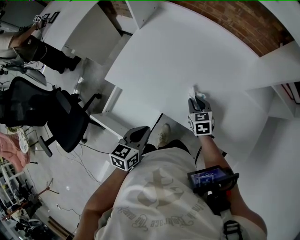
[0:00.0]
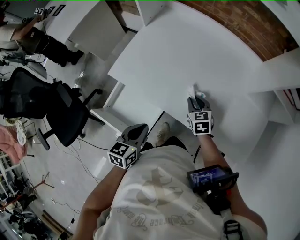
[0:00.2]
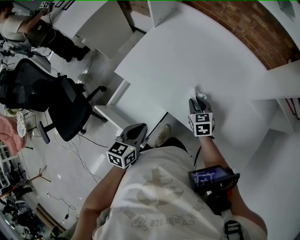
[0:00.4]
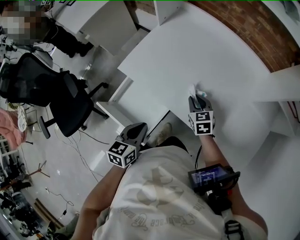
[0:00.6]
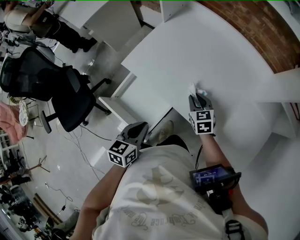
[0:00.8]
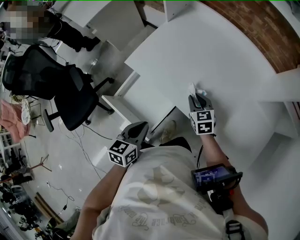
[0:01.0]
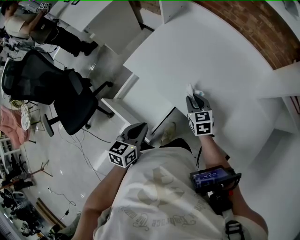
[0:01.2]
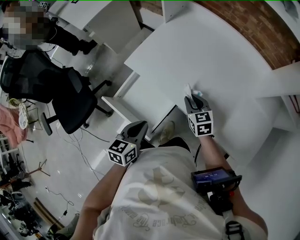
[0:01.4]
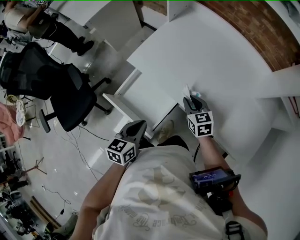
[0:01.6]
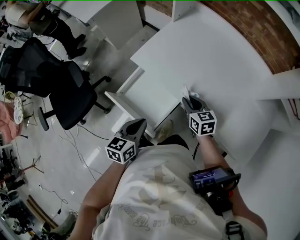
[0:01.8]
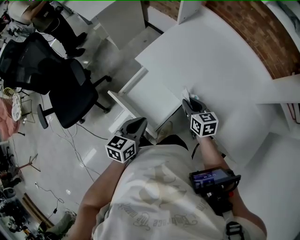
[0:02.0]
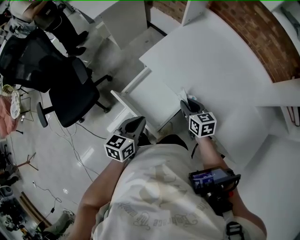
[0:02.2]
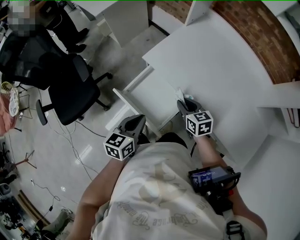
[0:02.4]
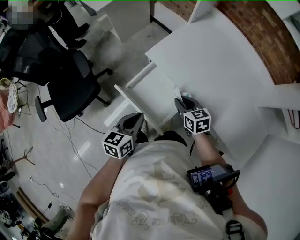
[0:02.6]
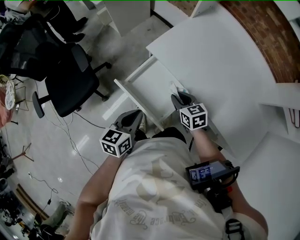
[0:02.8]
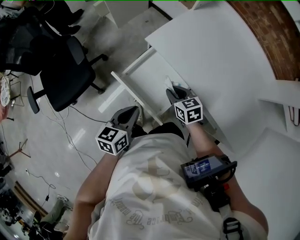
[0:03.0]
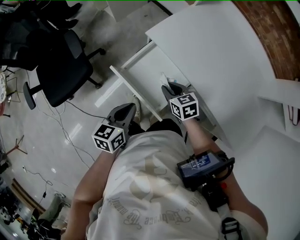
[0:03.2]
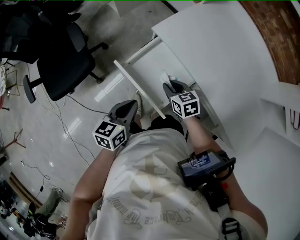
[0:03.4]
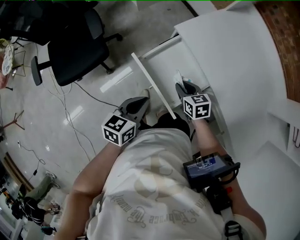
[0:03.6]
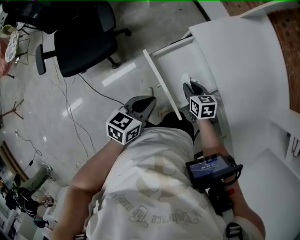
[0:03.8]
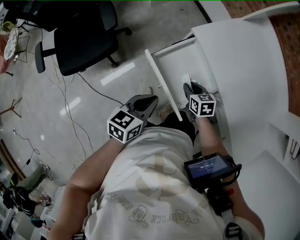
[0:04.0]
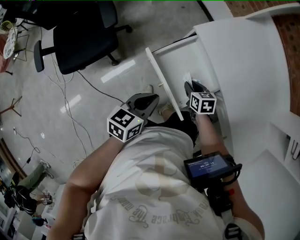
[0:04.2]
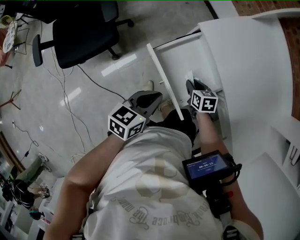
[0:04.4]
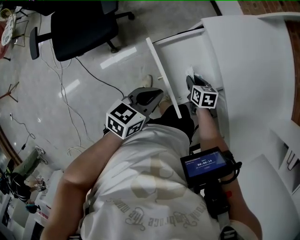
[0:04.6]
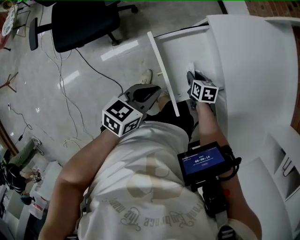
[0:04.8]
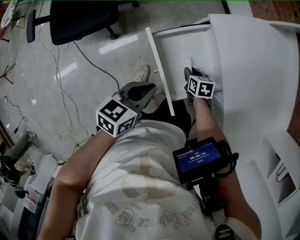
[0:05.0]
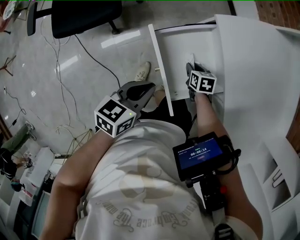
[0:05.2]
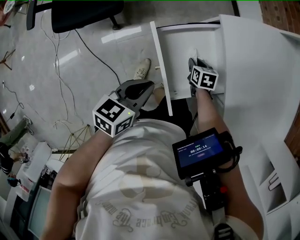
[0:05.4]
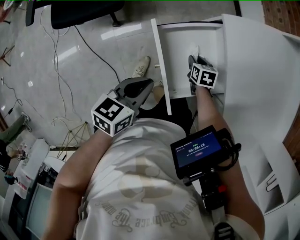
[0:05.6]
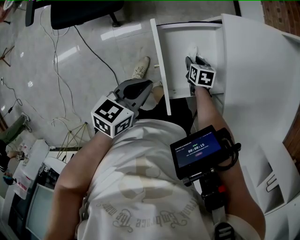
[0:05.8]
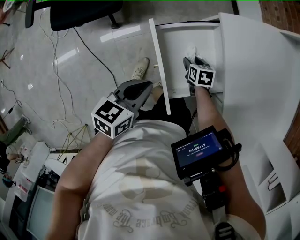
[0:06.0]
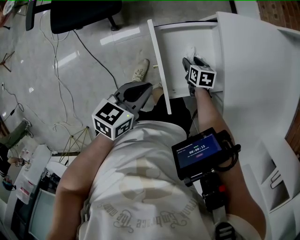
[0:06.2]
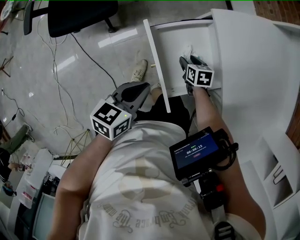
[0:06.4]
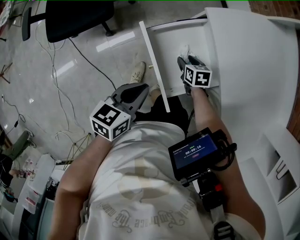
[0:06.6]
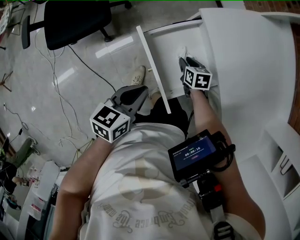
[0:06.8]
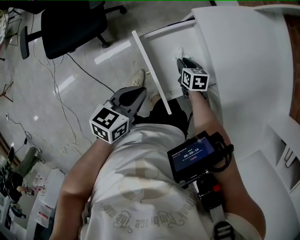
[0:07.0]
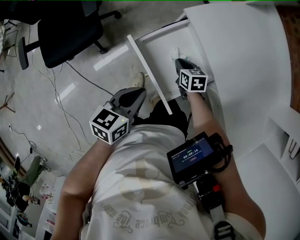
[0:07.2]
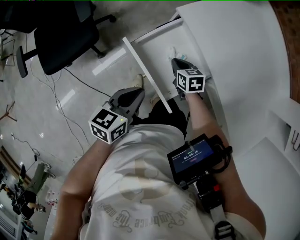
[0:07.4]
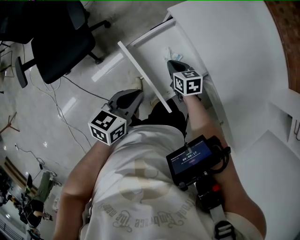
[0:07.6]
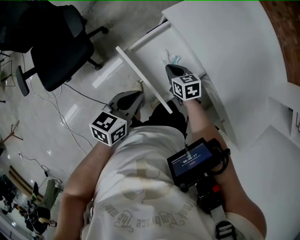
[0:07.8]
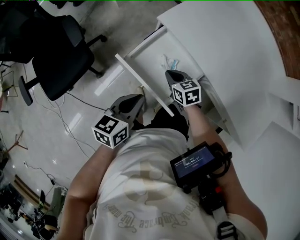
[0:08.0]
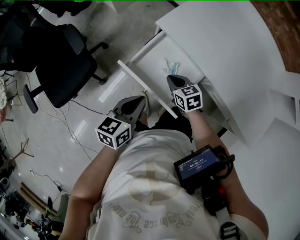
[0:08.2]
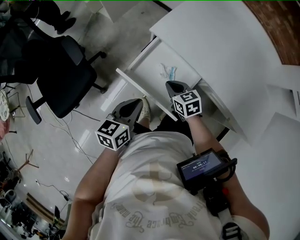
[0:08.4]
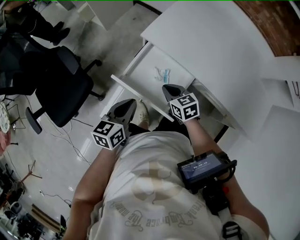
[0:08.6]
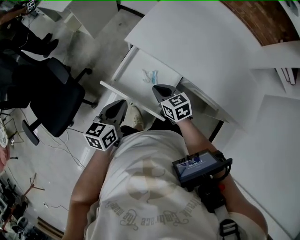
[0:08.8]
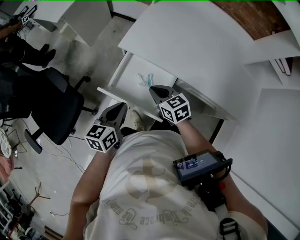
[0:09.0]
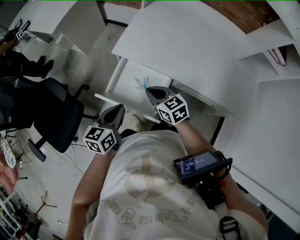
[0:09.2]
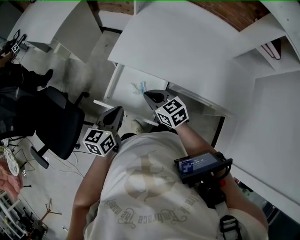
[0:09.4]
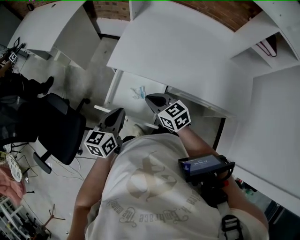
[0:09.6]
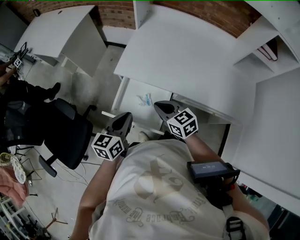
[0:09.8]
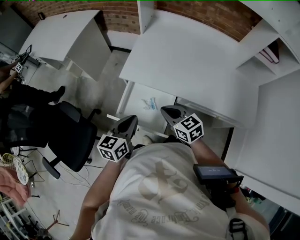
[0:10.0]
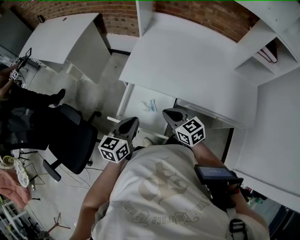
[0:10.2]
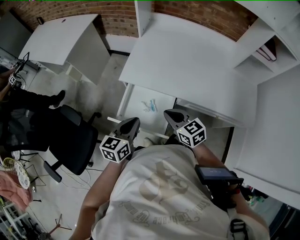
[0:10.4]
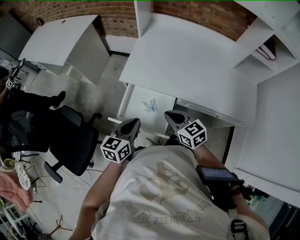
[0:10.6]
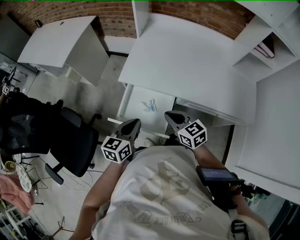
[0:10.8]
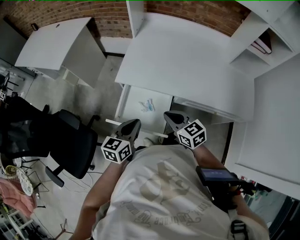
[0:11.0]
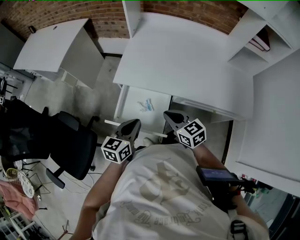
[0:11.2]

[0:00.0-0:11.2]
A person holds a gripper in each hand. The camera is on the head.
0:00.0 to 0:01.6: The right gripper is displaced to the left by roughly 10 cm, while the left gripper goes some 10 cm to the left and backward.
0:01.6 to 0:03.2: Both grippers move to the left, some 15 cm.
0:03.2 to 0:04.8: The left gripper ends up about 5 cm from where it was; the right gripper goes some 15 cm downward.
0:04.8 to 0:06.4: The right gripper opens.
0:06.4 to 0:08.0: The right gripper travels upward by about 10 cm, and closes. The left gripper turns by about 20 degrees.
0:08.0 to 0:09.6: The right gripper goes approximately 20 cm upward, and rotates approximately 20 degrees. Meanwhile the left gripper goes about 10 cm upward.
0:09.6 to 0:11.2: The right gripper changes place by some 5 cm.

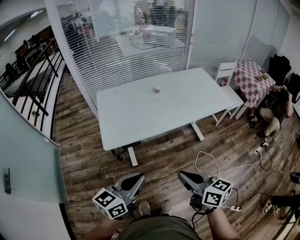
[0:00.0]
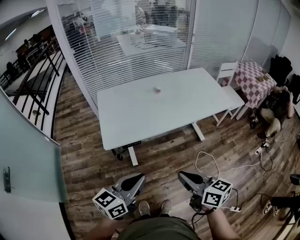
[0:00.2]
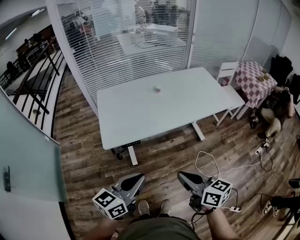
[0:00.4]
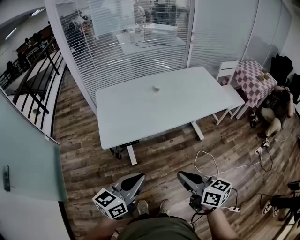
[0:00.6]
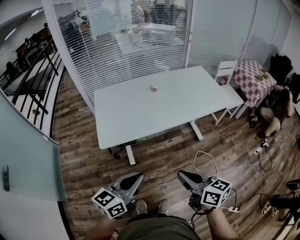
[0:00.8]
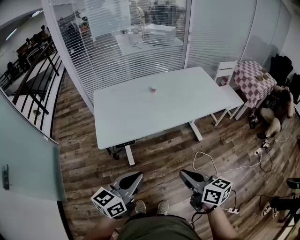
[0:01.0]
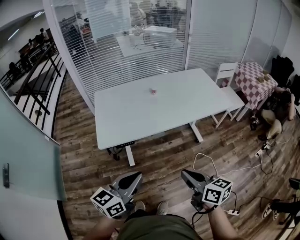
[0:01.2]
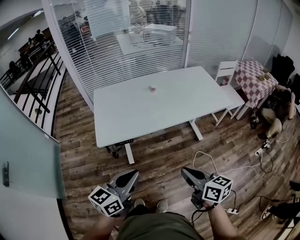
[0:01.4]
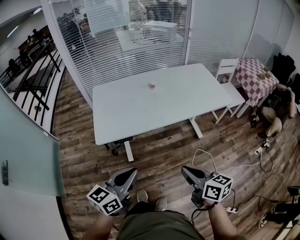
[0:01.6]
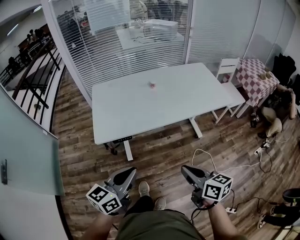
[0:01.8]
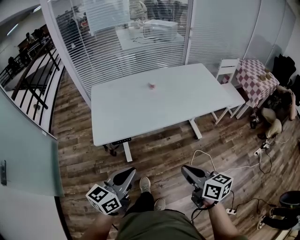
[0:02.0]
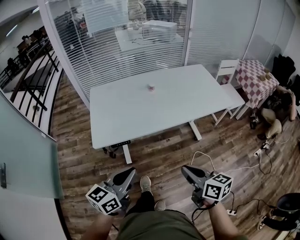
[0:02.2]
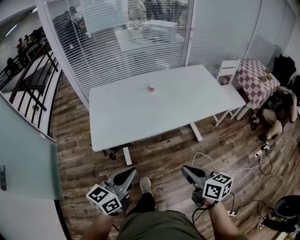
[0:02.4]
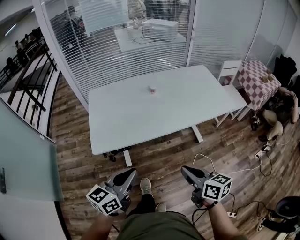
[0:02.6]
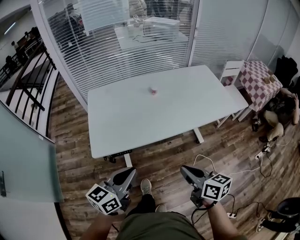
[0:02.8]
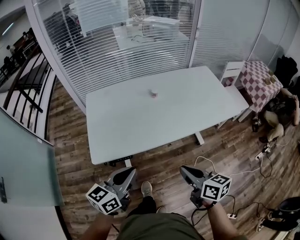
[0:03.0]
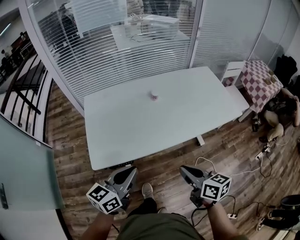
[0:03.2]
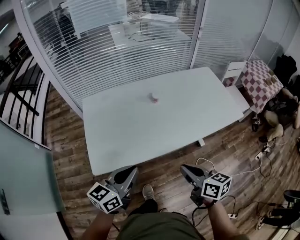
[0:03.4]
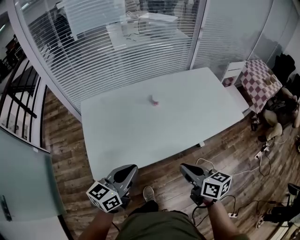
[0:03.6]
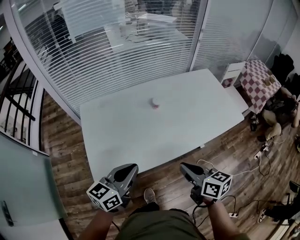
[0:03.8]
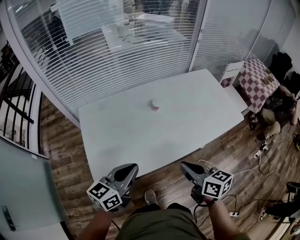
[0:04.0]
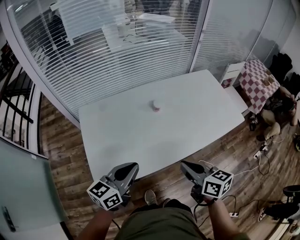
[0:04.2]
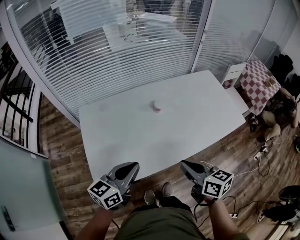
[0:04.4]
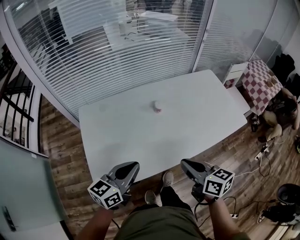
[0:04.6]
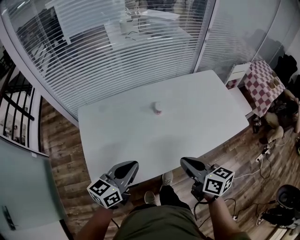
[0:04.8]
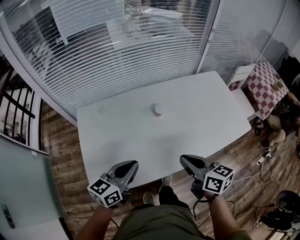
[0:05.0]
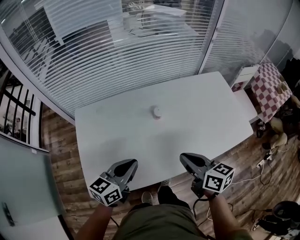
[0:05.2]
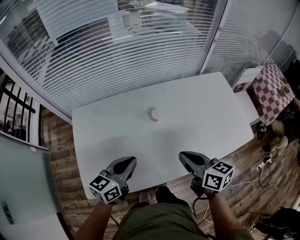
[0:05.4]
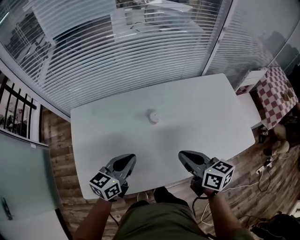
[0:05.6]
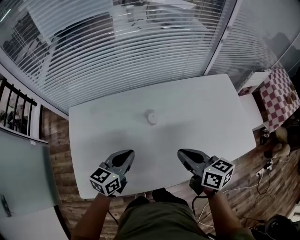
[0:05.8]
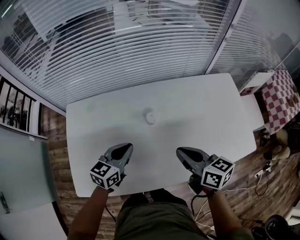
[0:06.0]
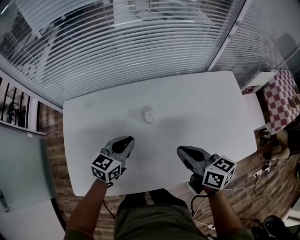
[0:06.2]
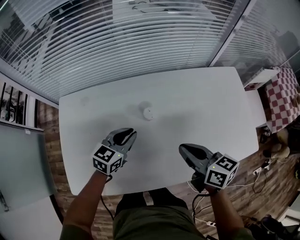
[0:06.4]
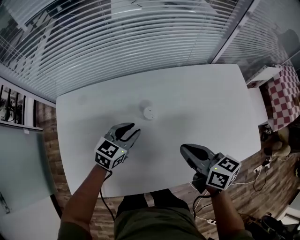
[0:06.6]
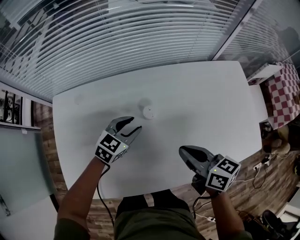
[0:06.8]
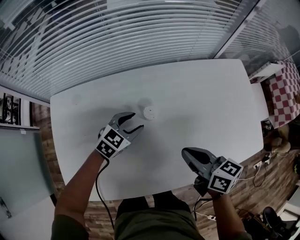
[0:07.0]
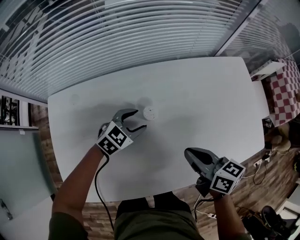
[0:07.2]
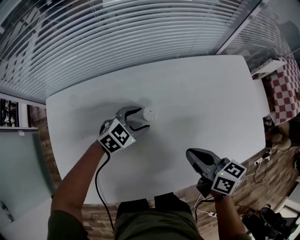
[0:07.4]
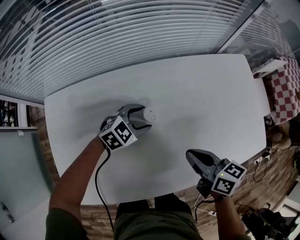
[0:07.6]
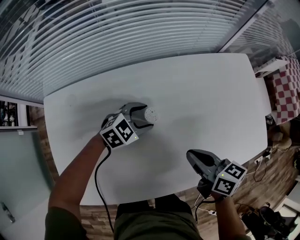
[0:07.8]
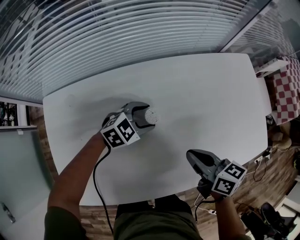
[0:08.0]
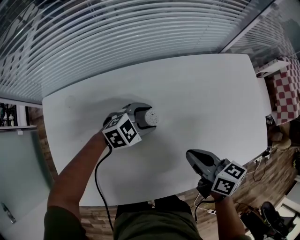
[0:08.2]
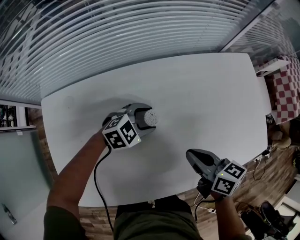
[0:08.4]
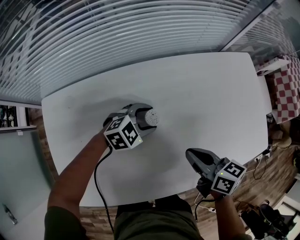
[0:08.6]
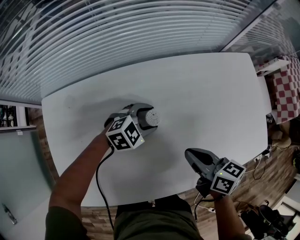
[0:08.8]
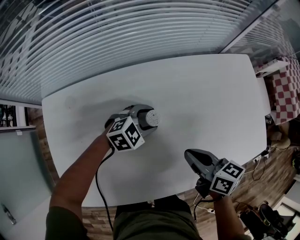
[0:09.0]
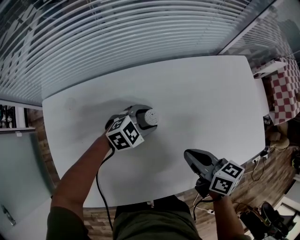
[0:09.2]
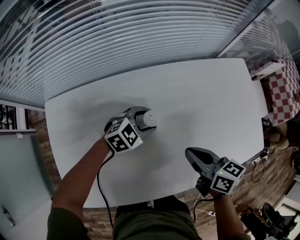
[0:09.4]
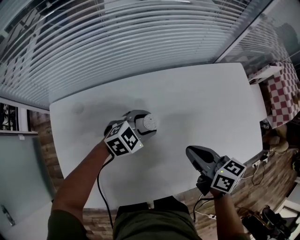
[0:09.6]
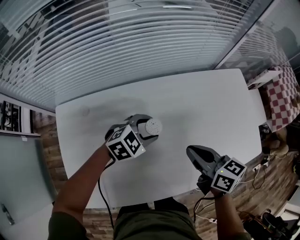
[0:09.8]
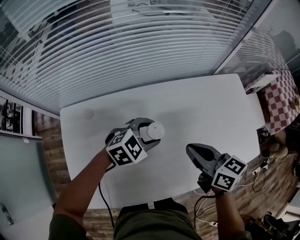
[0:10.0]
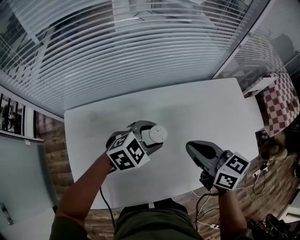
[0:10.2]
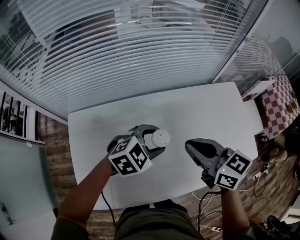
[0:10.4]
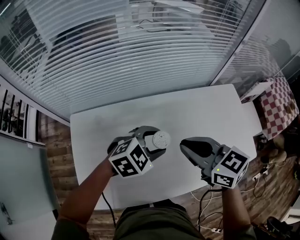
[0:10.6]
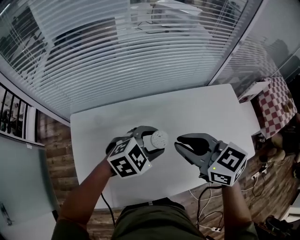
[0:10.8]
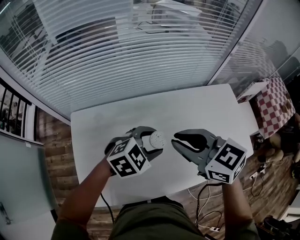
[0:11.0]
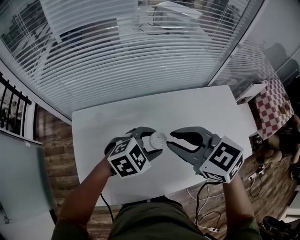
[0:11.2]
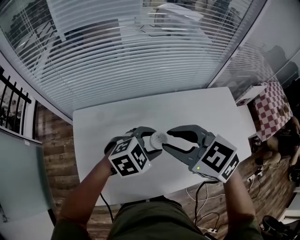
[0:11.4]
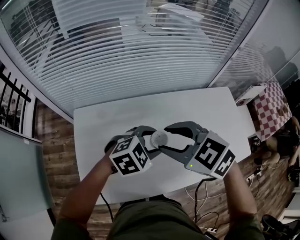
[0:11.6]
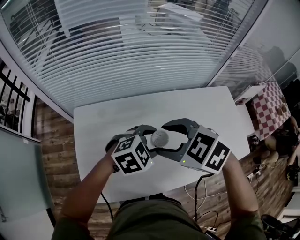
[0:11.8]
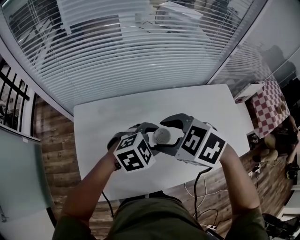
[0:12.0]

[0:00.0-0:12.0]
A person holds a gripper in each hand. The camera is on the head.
0:00.0 to 0:01.6: The right gripper moves to the right, roughly 10 cm.
0:01.6 to 0:03.0: Both grippers travel together forward, roughly 15 cm.
0:03.0 to 0:04.4: The grippers both shift forward by some 15 cm.
0:04.4 to 0:06.0: The right gripper is displaced forward by some 20 cm. Meanwhile the left gripper heads forward and downward, covering approximately 20 cm.
0:06.0 to 0:07.6: The left gripper goes roughly 20 cm downward, forward and to the right, rotates approximately 50 degrees, and opens its fingers; the right gripper goes roughly 10 cm downward.
0:07.6 to 0:09.0: There are only small adjustments of the grippers.
0:09.0 to 0:10.4: Both grippers move upward, some 20 cm. The right gripper rotates approximately 30 degrees.
0:10.4 to 0:12.0: The left gripper changes place by approximately 10 cm, while the right gripper ends up approximately 15 cm from where it was, points its fingers approximately 30 degrees further downward, and opens.

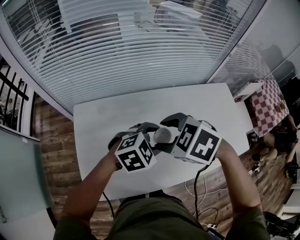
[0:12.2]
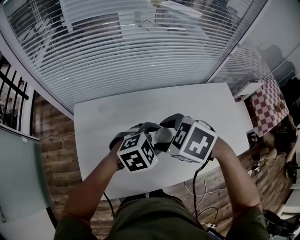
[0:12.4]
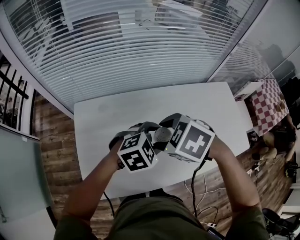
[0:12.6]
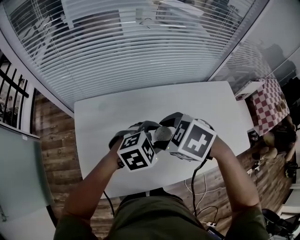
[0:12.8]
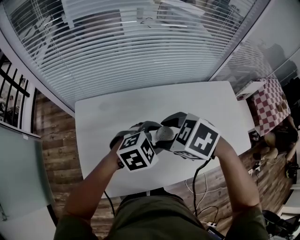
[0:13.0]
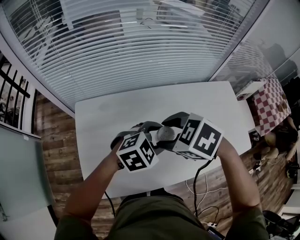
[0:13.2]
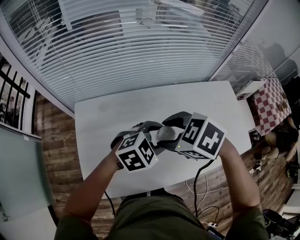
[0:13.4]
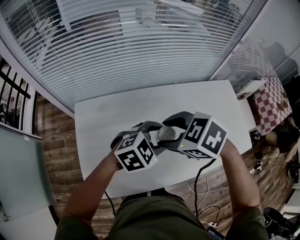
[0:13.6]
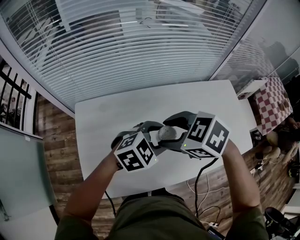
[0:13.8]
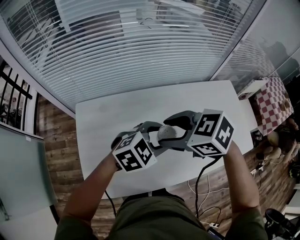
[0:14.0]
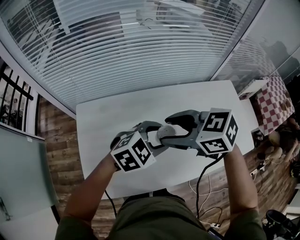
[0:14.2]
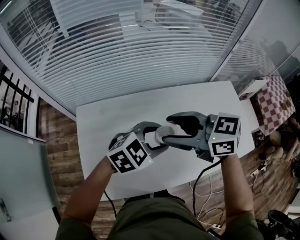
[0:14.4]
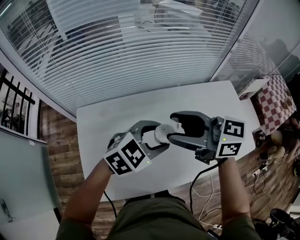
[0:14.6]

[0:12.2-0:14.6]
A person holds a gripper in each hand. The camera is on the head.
0:12.2 to 0:13.4: The grippers stay close to where they were, moving slightly.
0:13.4 to 0:14.6: The right gripper goes about 10 cm upward, and points its fingers about 50 degrees further upward.
